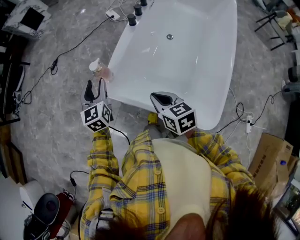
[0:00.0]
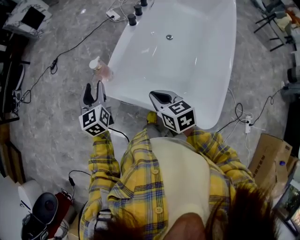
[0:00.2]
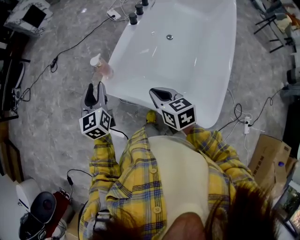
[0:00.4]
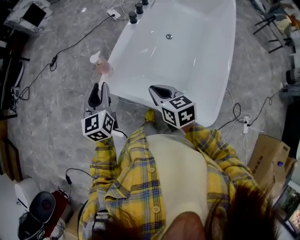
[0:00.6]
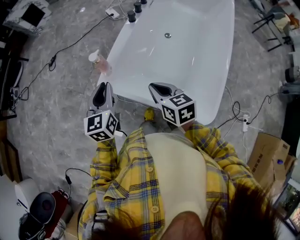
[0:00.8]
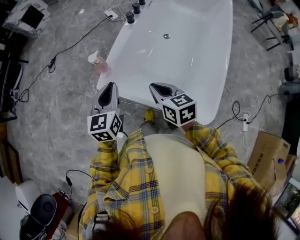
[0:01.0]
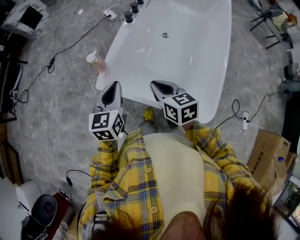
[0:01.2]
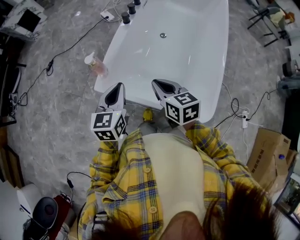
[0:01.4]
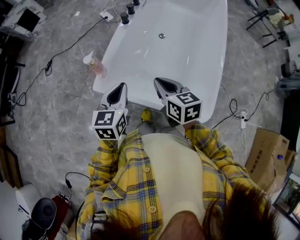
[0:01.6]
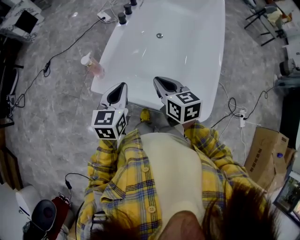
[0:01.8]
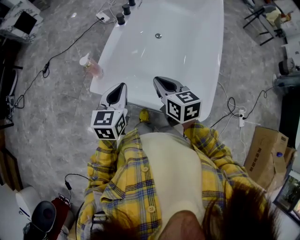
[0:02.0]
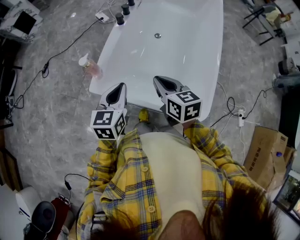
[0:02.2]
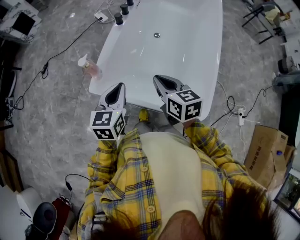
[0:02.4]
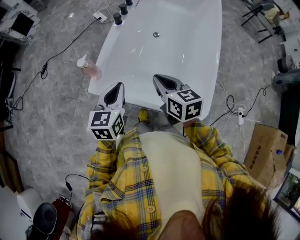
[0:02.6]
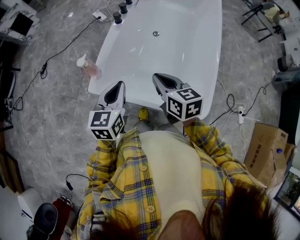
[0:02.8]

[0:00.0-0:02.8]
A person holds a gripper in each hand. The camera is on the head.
0:00.0 to 0:01.4: The left gripper shifts approximately 15 cm backward and to the right, swivels roughly 20 degrees, and closes its fingers.
0:01.4 to 0:02.8: The grippers make only small movements.

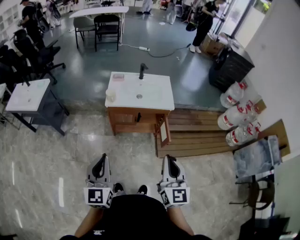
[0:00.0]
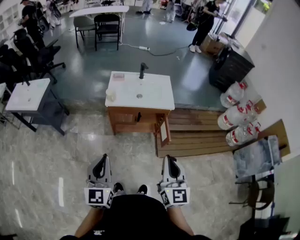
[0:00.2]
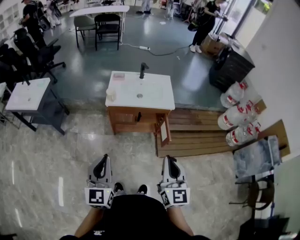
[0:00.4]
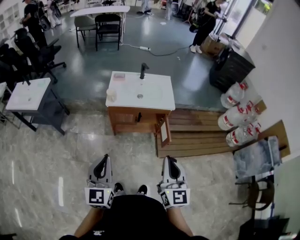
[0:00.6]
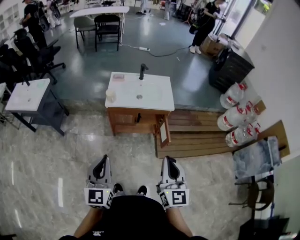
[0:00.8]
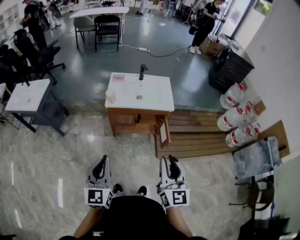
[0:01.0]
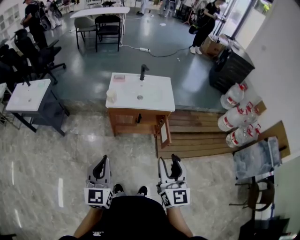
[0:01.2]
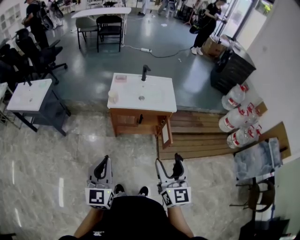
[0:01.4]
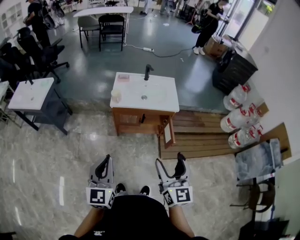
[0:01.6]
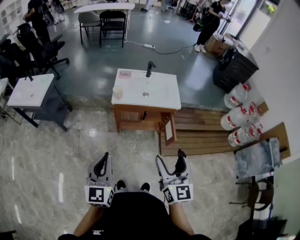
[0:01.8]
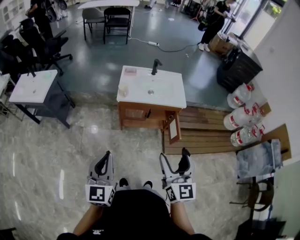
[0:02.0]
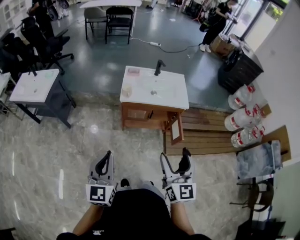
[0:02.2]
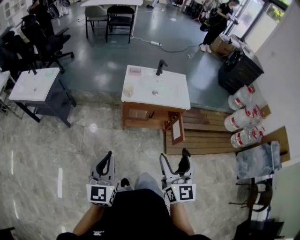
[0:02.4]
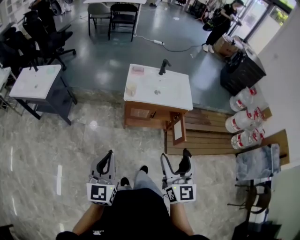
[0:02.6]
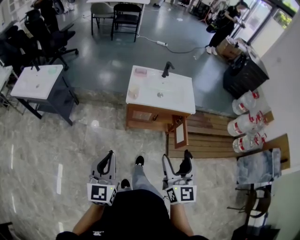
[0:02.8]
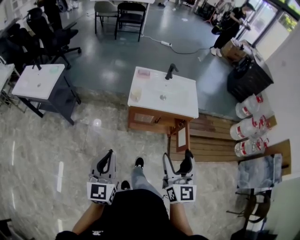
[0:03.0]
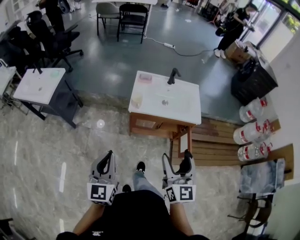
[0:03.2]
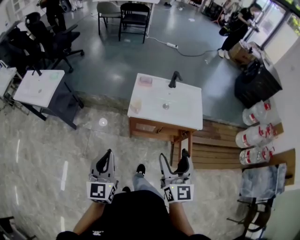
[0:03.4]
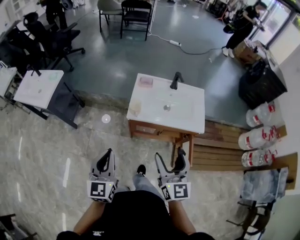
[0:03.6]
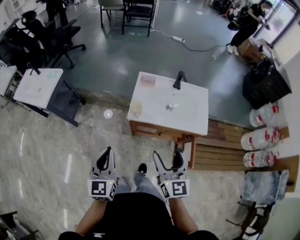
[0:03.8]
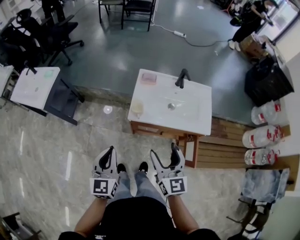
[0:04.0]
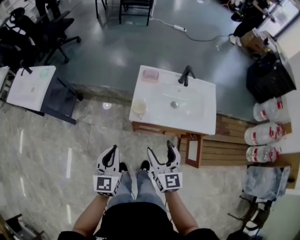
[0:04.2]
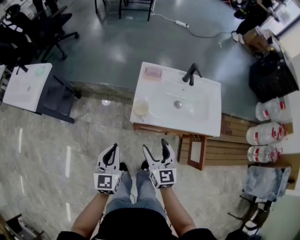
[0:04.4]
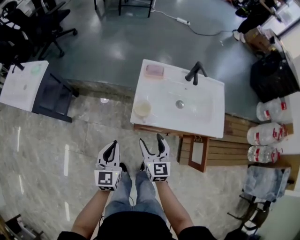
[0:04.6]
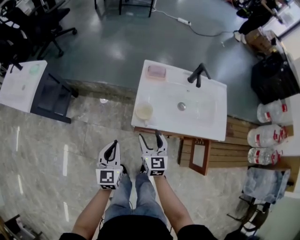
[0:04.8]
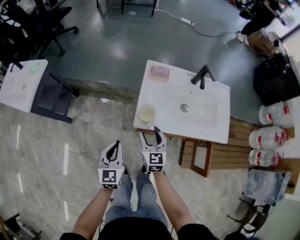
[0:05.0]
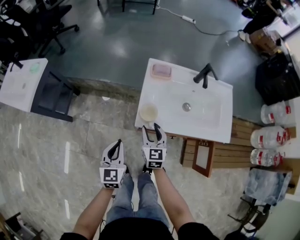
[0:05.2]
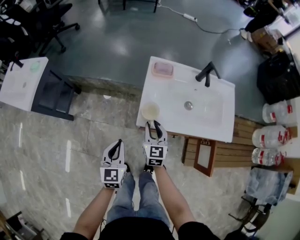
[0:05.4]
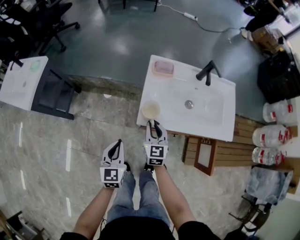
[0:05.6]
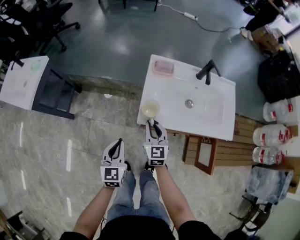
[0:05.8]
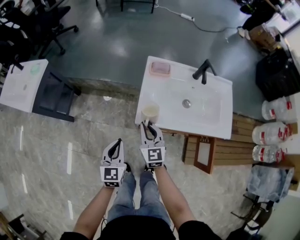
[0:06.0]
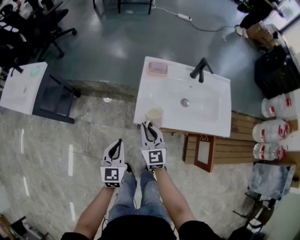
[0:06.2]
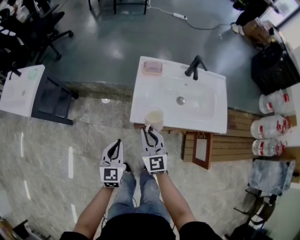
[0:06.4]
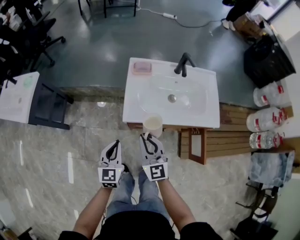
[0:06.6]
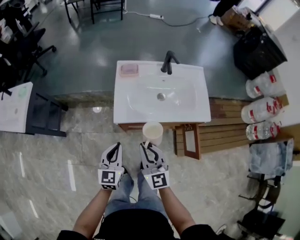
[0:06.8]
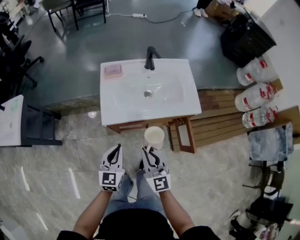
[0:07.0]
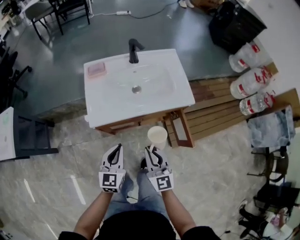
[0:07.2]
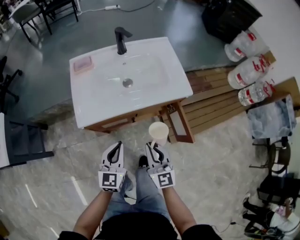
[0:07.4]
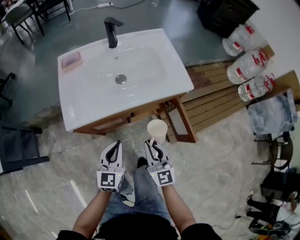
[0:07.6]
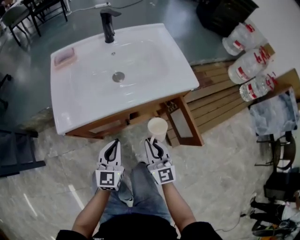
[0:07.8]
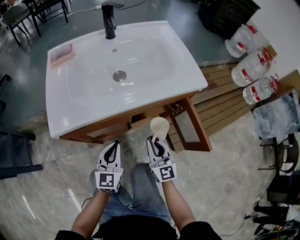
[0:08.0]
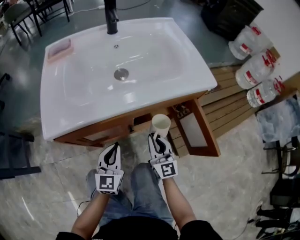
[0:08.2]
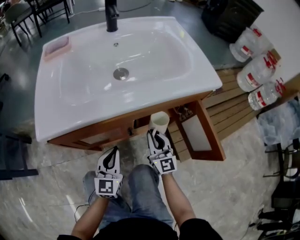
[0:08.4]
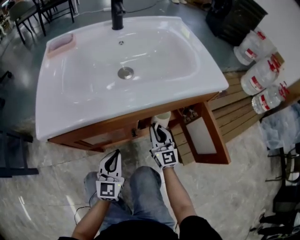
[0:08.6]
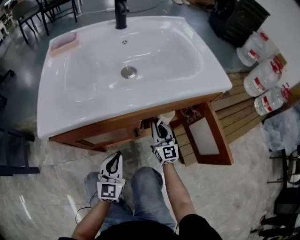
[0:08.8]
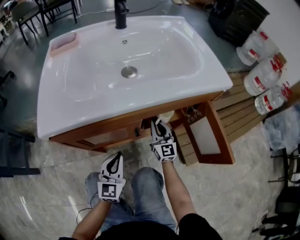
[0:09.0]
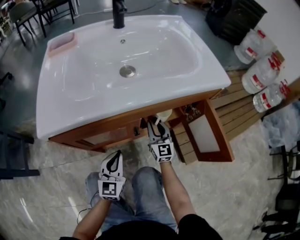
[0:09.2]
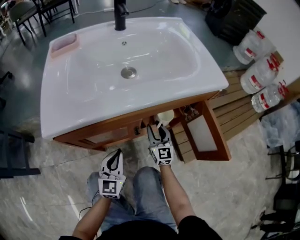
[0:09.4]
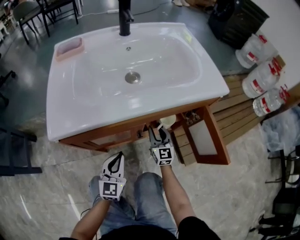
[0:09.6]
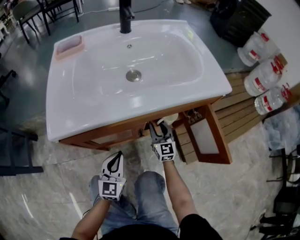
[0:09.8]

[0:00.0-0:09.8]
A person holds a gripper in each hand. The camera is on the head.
0:00.0 to 0:01.4: The right gripper opens up.
0:01.4 to 0:02.8: The left gripper travels to the left by approximately 10 cm. Meanwhile the right gripper moves to the left and forward, about 10 cm.
0:02.8 to 0:04.2: Both grippers move forward and downward, some 30 cm.
0:04.2 to 0:05.6: The grippers both shift downward and forward by about 25 cm. The right gripper closes.
0:05.6 to 0:07.0: The right gripper heads backward, upward and to the right, covering about 25 cm. Meanwhile the left gripper heads to the right, covering roughly 15 cm, and changes its angle by some 20 degrees.
0:07.0 to 0:08.4: Both grippers travel together downward, some 35 cm.
0:08.4 to 0:09.8: The right gripper moves forward and downward, approximately 10 cm.

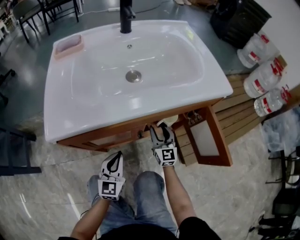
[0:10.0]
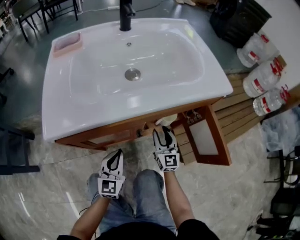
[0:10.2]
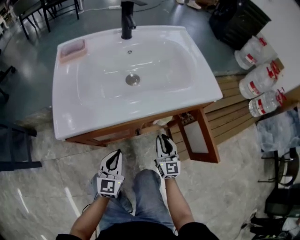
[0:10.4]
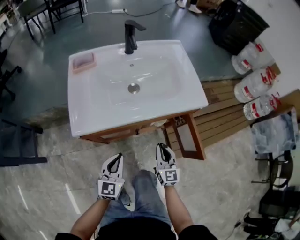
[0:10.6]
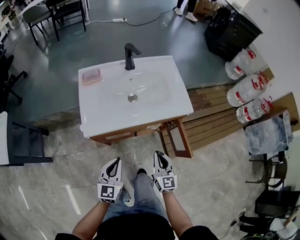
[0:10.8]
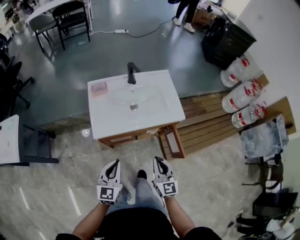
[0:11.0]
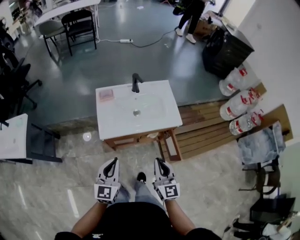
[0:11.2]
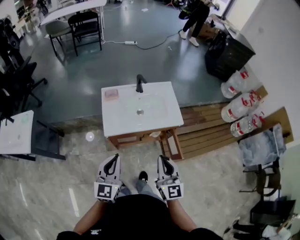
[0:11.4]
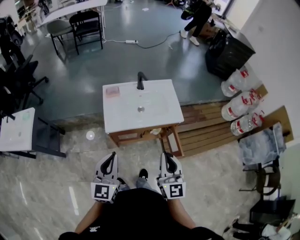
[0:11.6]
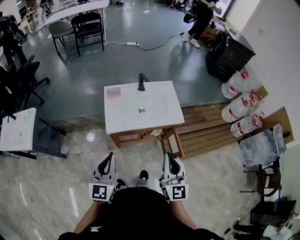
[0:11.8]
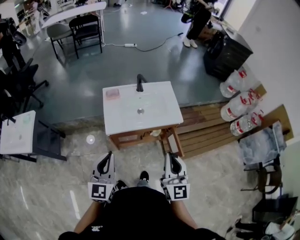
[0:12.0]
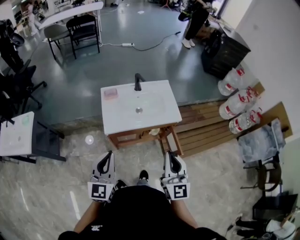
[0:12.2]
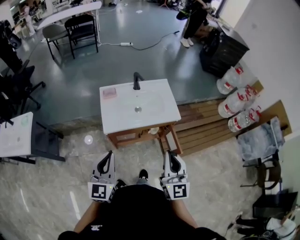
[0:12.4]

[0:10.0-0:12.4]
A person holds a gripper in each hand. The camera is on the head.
0:10.0 to 0:11.2: The left gripper travels upward by roughly 50 cm. Meanwhile the right gripper heads upward and backward, covering roughly 60 cm, and closes its fingers.
0:11.2 to 0:12.4: The grippers both shift upward by about 10 cm.

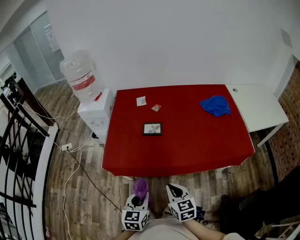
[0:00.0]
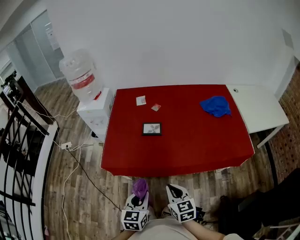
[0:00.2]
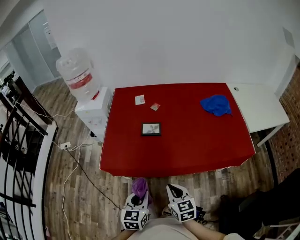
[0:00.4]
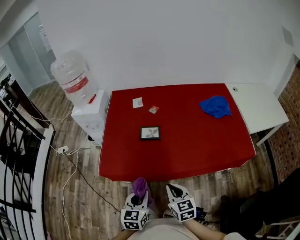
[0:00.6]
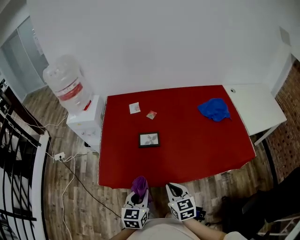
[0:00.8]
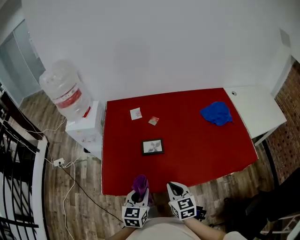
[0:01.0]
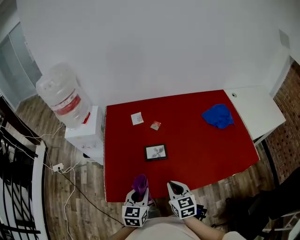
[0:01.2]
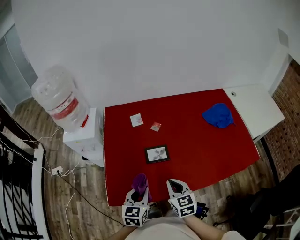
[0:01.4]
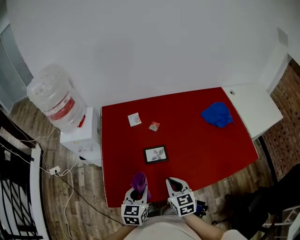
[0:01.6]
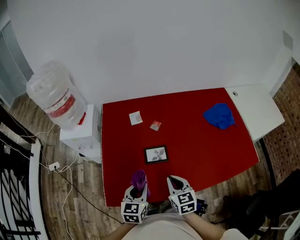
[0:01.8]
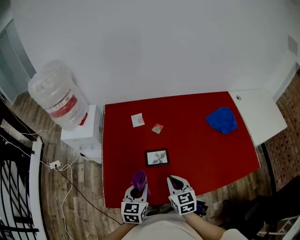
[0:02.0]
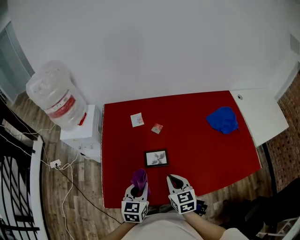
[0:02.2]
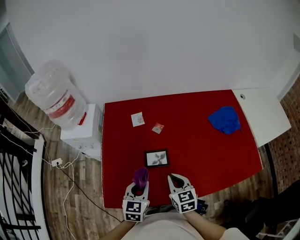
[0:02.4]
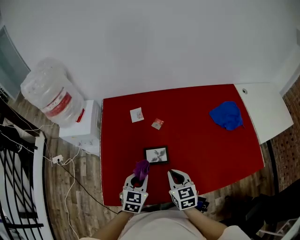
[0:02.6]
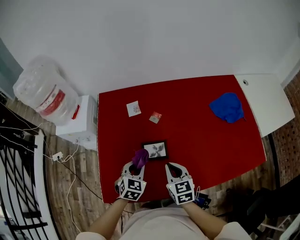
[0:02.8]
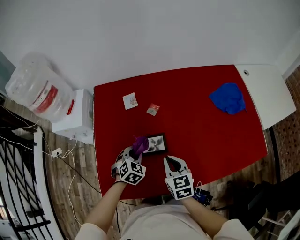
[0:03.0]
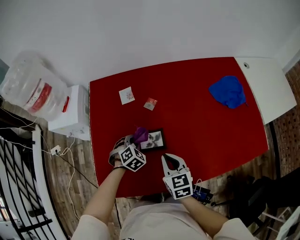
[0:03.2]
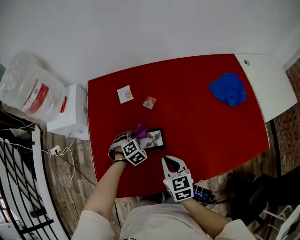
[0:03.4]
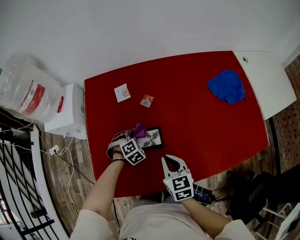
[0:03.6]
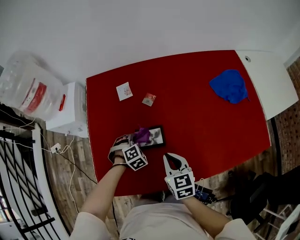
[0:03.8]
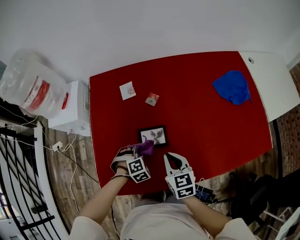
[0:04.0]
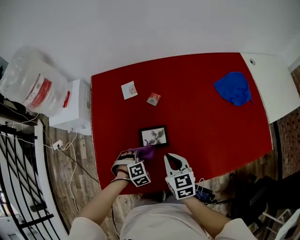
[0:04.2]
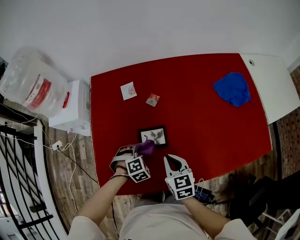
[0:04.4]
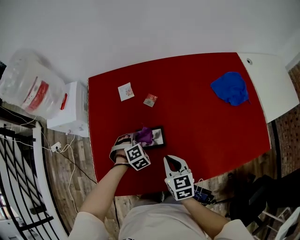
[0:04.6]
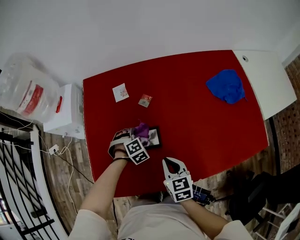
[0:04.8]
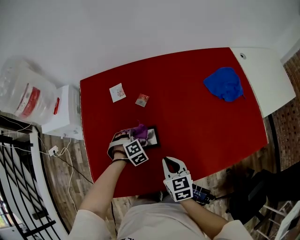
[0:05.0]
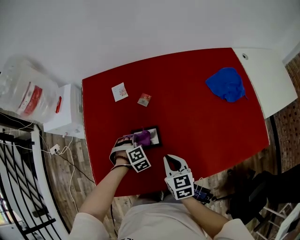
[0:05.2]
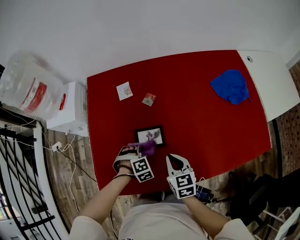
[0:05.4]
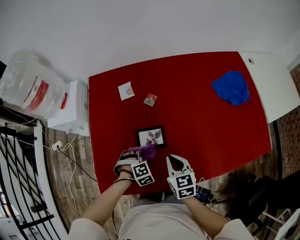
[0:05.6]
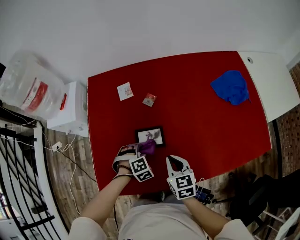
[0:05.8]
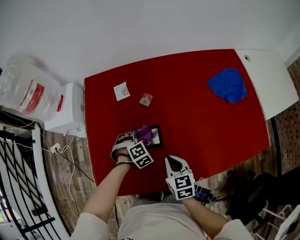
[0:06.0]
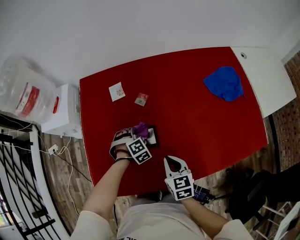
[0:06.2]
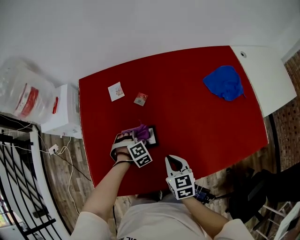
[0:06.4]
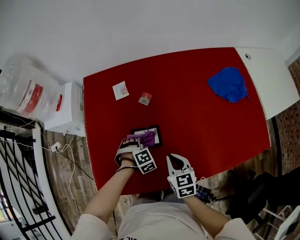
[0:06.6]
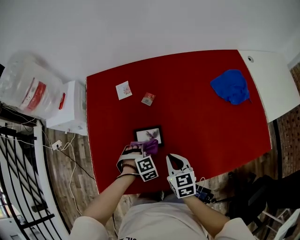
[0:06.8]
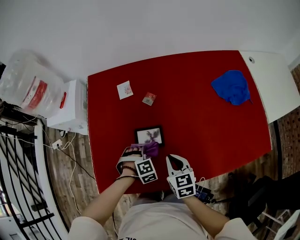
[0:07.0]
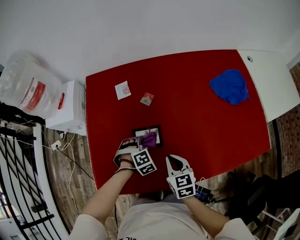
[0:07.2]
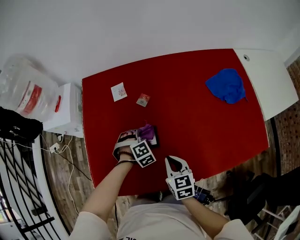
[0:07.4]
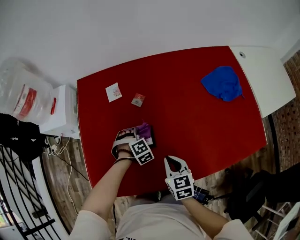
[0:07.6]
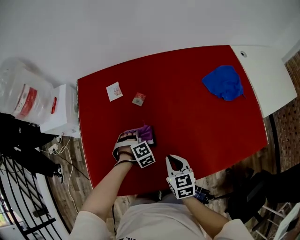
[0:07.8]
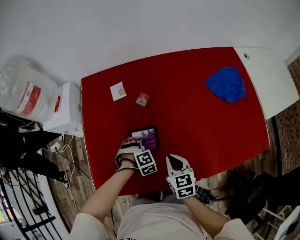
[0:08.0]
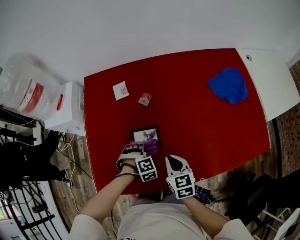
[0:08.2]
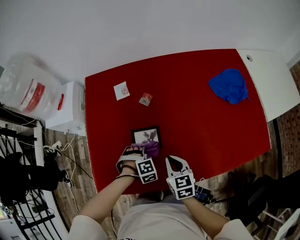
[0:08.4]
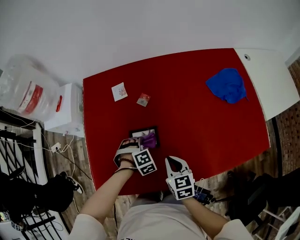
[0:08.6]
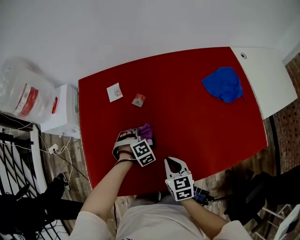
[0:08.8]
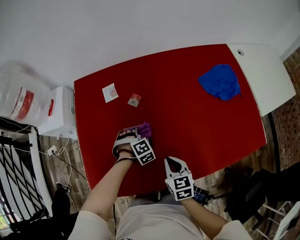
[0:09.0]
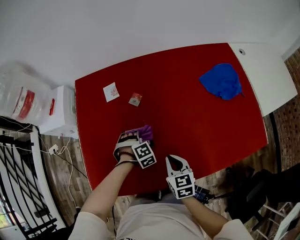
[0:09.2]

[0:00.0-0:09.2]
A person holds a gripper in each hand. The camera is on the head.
0:00.0 to 0:01.6: Both grippers move forward, some 25 cm.
0:01.6 to 0:03.0: The left gripper heads forward and downward, covering about 20 cm, and rotates approximately 40 degrees. Meanwhile the right gripper is displaced forward by some 10 cm.
0:03.0 to 0:04.6: The left gripper goes forward and backward, some 10 cm each way, reversing 2 times, and swivels some 30 degrees.
0:04.6 to 0:06.2: The left gripper travels backward and back again, about 10 cm each way.
0:06.2 to 0:07.6: The left gripper travels backward and back again, roughly 10 cm each way.
0:07.6 to 0:09.2: The left gripper moves approximately 10 cm backward and comes back.
